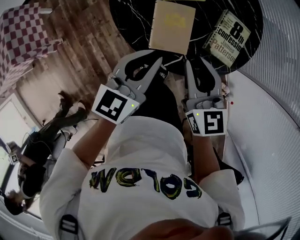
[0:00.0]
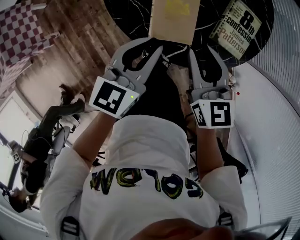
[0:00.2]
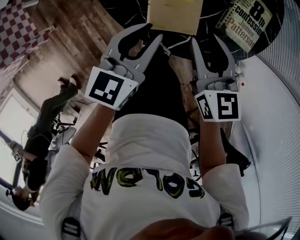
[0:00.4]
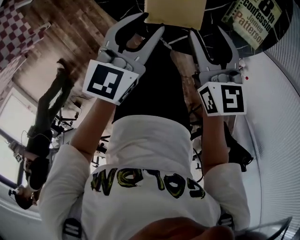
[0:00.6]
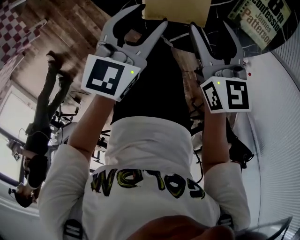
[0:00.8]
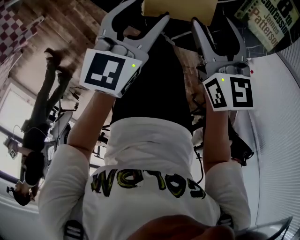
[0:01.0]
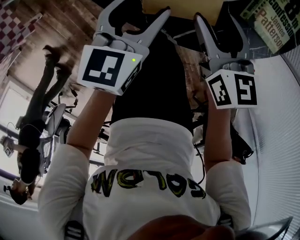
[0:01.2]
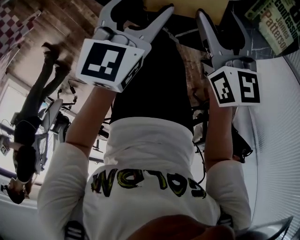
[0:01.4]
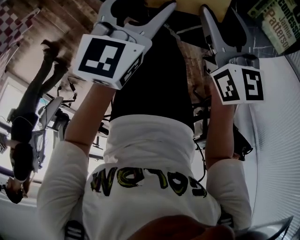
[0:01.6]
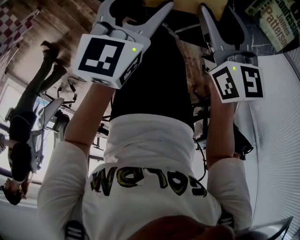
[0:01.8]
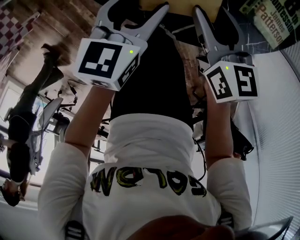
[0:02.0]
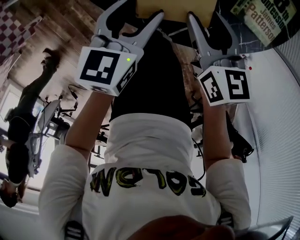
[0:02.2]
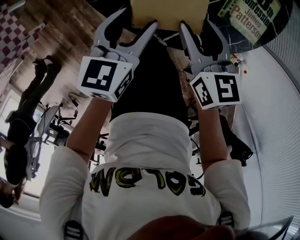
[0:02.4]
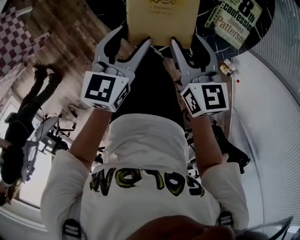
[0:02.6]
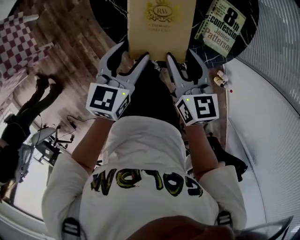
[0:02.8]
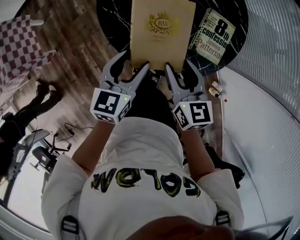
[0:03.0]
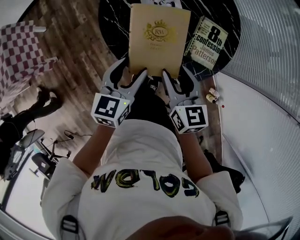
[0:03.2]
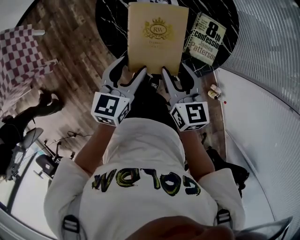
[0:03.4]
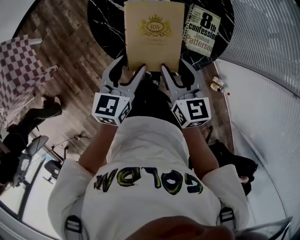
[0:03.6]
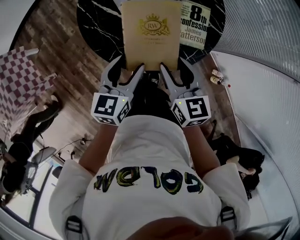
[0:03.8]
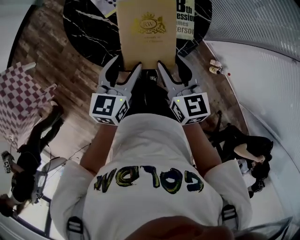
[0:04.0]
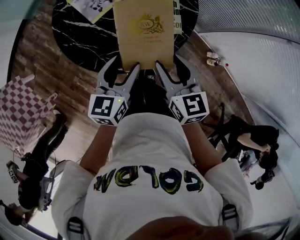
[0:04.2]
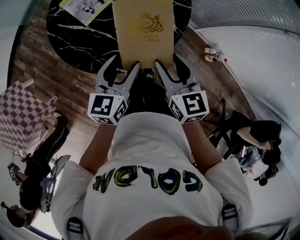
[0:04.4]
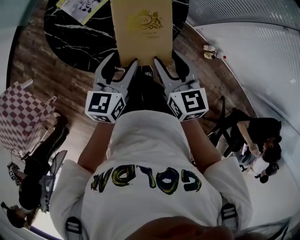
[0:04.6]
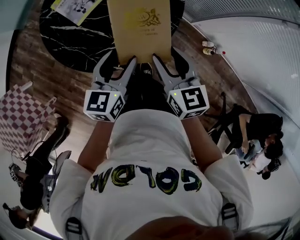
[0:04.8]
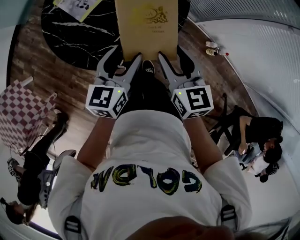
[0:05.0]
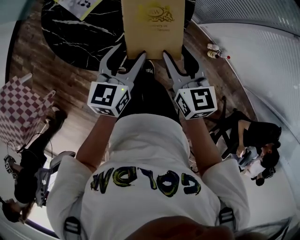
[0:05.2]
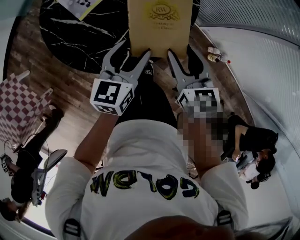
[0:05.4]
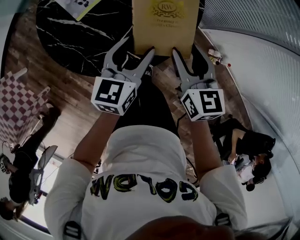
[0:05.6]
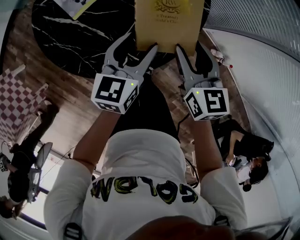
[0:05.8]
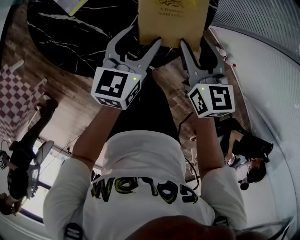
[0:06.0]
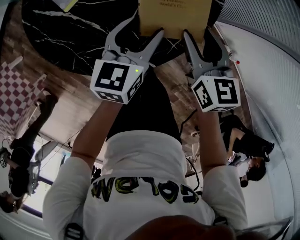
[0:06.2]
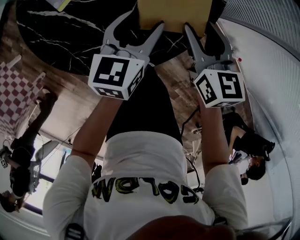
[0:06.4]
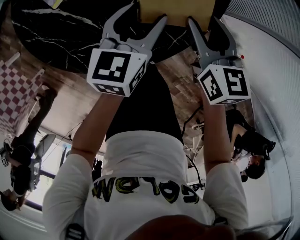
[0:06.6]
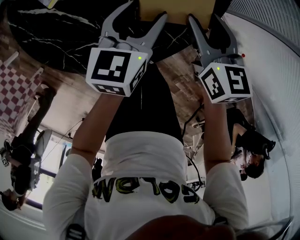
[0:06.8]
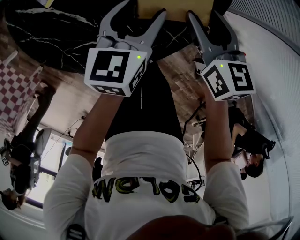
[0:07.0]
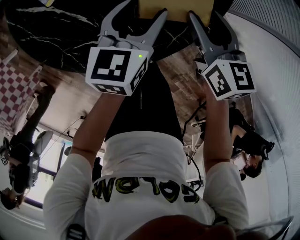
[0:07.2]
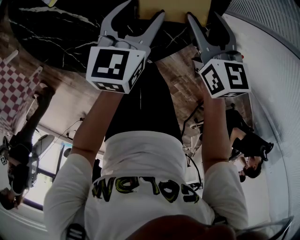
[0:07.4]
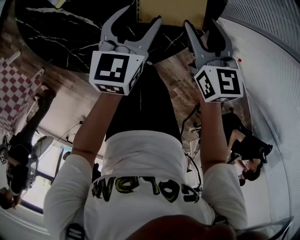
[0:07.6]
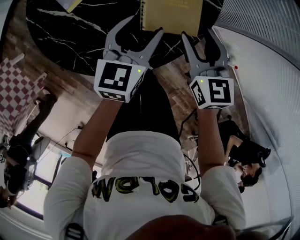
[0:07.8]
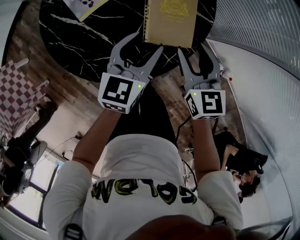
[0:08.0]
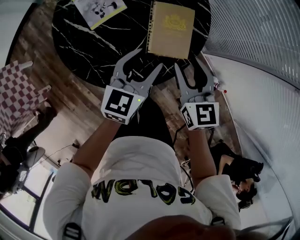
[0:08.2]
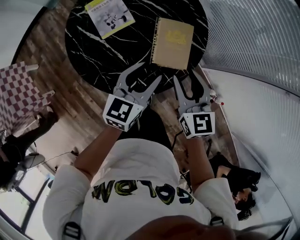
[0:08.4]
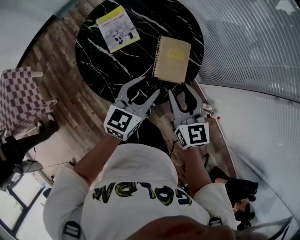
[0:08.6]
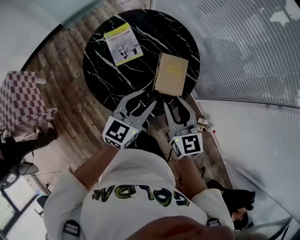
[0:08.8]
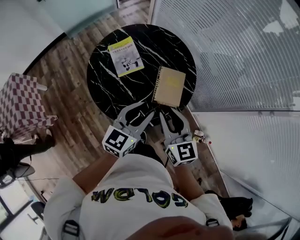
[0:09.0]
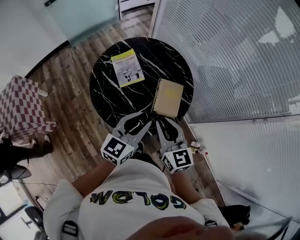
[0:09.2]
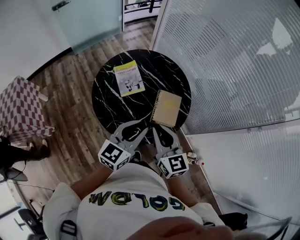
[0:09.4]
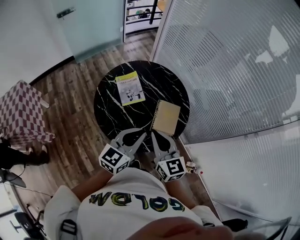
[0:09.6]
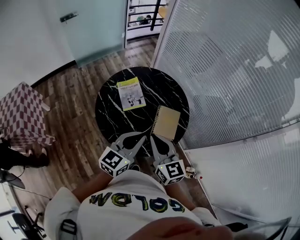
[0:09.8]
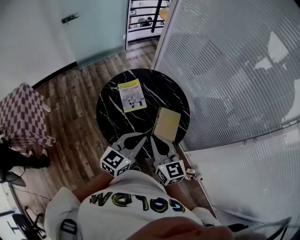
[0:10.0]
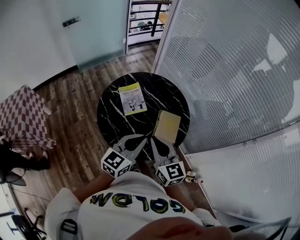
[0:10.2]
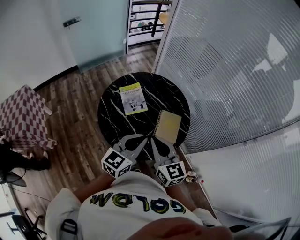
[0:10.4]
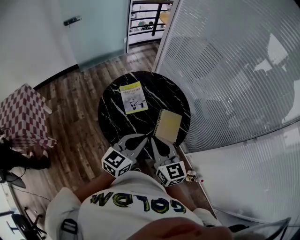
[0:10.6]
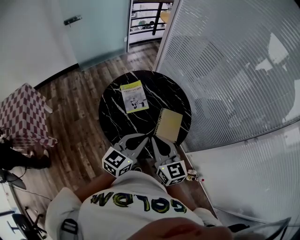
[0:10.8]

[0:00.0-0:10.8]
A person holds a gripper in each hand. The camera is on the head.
0:00.0 to 0:01.6: The grippers both shift downward by roughly 25 cm. The left gripper rotates some 20 degrees, and opens its fingers. Meanwhile the right gripper changes its angle by some 20 degrees, and opens.
0:01.6 to 0:03.0: The two grippers go approximately 20 cm upward.
0:03.0 to 0:04.6: Both grippers move to the right, some 15 cm. The left gripper turns by approximately 20 degrees, while the right gripper changes its angle by approximately 20 degrees.
0:04.6 to 0:06.2: The left gripper goes approximately 20 cm downward and forward. Meanwhile the right gripper heads forward and downward, covering some 20 cm.
0:06.2 to 0:07.8: The grippers move only a little.
0:07.8 to 0:09.2: The right gripper is displaced upward, to the left and backward by approximately 35 cm, swivels approximately 20 degrees, and closes its fingers, while the left gripper goes about 30 cm upward and backward, and closes its fingers.
0:09.2 to 0:10.8: The left gripper moves about 5 cm, and closes its fingers, while the right gripper moves to the left and upward, roughly 10 cm.

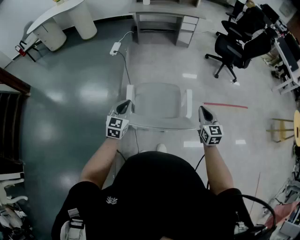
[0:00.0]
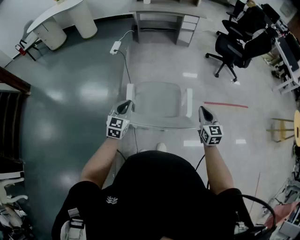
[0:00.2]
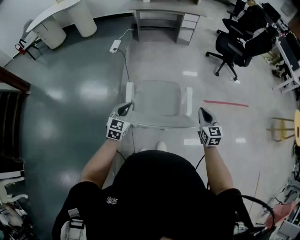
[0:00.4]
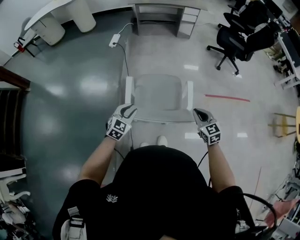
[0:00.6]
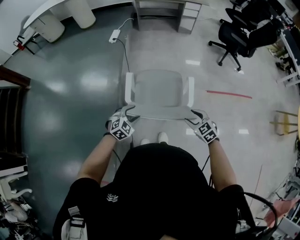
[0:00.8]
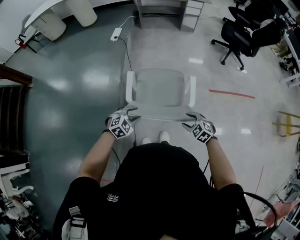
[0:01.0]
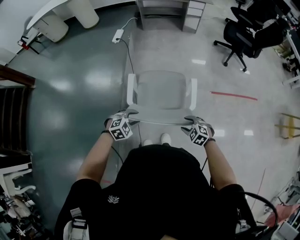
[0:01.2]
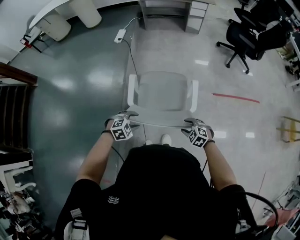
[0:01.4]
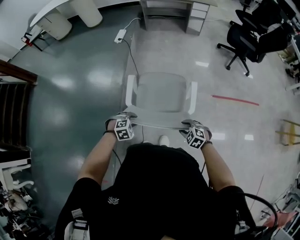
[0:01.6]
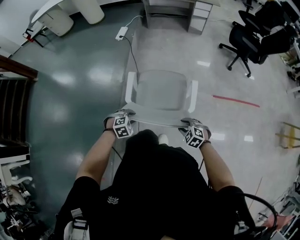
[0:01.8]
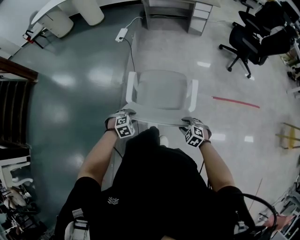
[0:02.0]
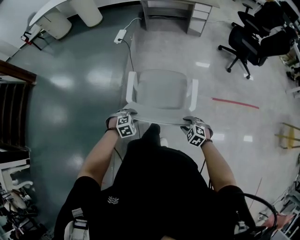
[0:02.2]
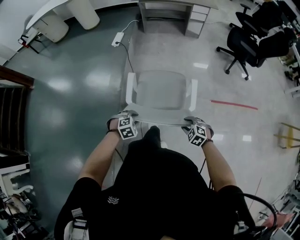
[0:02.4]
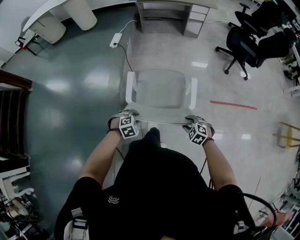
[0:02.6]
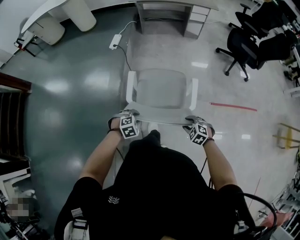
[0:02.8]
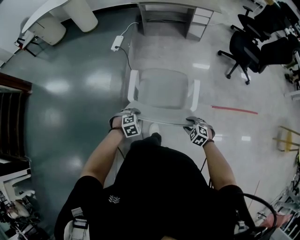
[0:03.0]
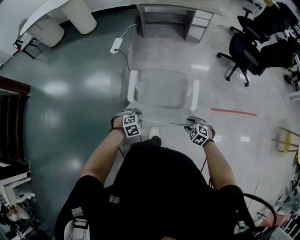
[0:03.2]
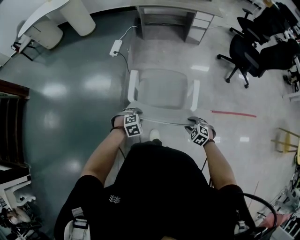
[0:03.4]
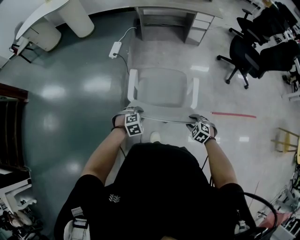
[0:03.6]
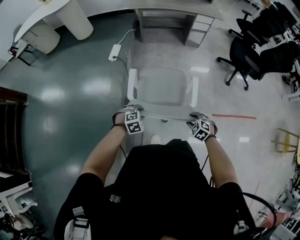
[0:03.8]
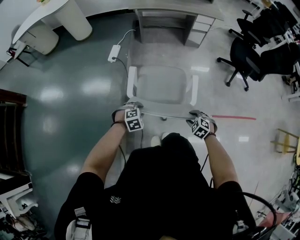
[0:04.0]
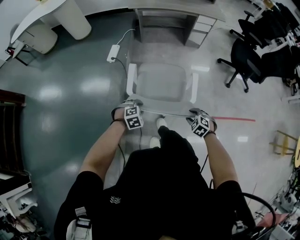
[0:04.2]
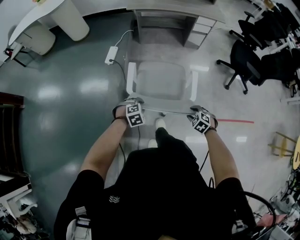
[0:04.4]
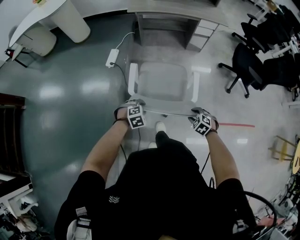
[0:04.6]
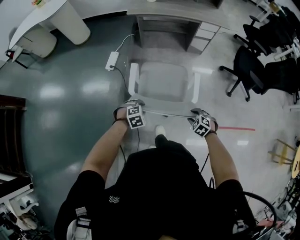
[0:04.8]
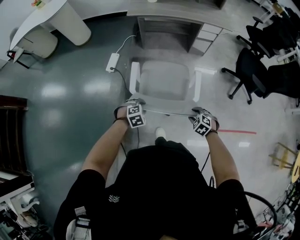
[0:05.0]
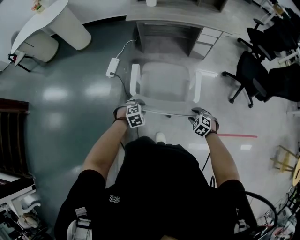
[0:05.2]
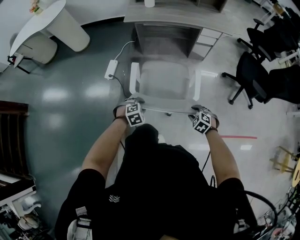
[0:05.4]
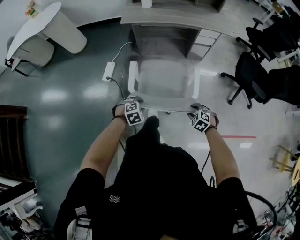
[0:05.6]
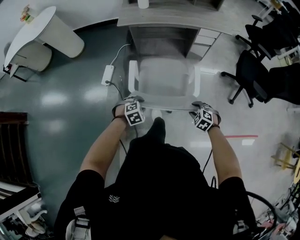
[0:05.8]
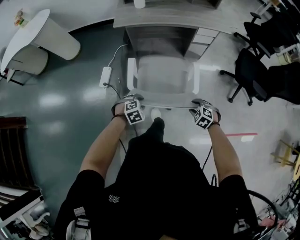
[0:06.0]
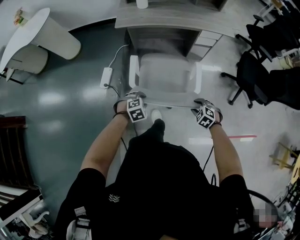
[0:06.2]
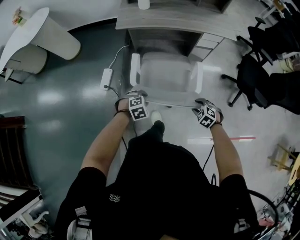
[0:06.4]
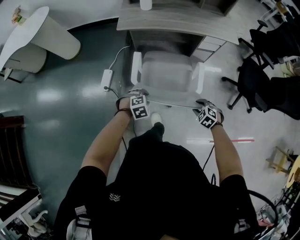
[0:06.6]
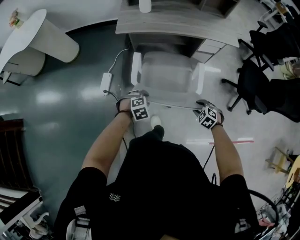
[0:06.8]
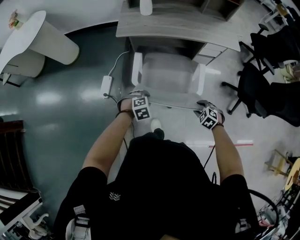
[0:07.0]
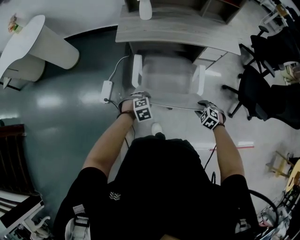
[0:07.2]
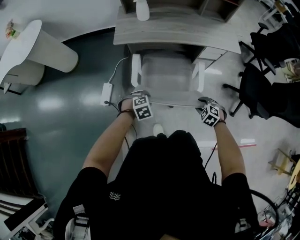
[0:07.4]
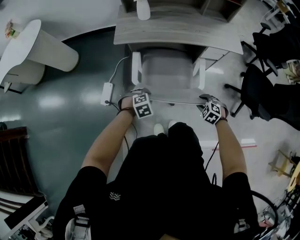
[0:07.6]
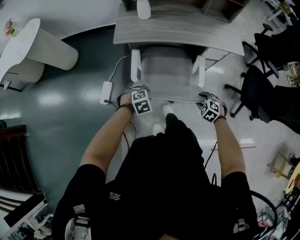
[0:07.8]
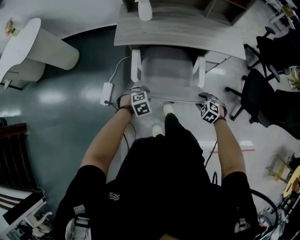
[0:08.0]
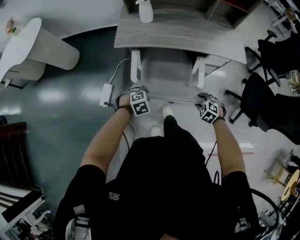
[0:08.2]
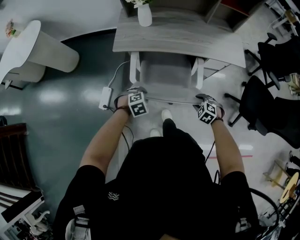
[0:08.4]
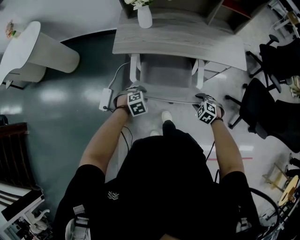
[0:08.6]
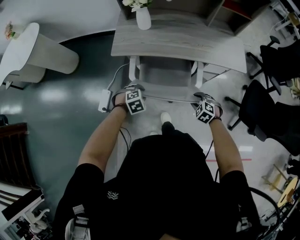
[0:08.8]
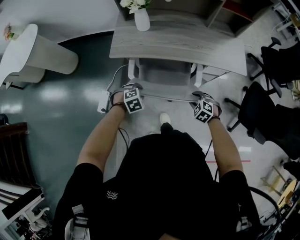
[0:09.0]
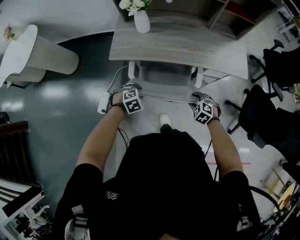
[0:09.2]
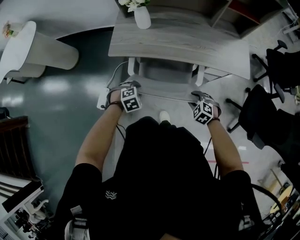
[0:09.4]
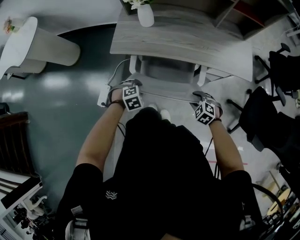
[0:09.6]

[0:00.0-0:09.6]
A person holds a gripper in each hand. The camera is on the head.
0:00.0 to 0:01.6: The left gripper moves downward, backward and to the right, about 20 cm, tilts its fingers approximately 50 degrees downward, and opens up. Meanwhile the right gripper shifts approximately 20 cm downward, tips its fingers downward by roughly 40 degrees, and opens its fingers.
0:01.6 to 0:03.2: Both grippers travel together forward, approximately 25 cm.
0:03.2 to 0:04.8: Both grippers travel together forward, approximately 35 cm.
0:04.8 to 0:06.4: Both grippers move forward, about 30 cm.
0:06.4 to 0:08.0: Both grippers travel together forward, approximately 20 cm.
0:08.0 to 0:09.6: The left gripper ends up some 15 cm from where it was. The right gripper changes place by about 15 cm.

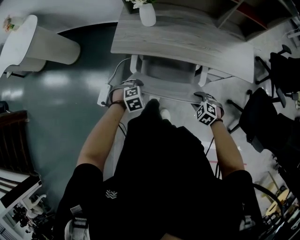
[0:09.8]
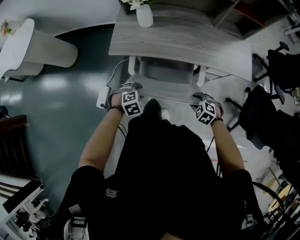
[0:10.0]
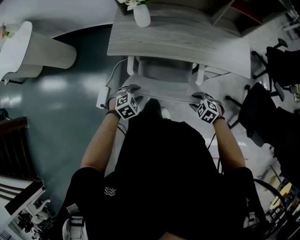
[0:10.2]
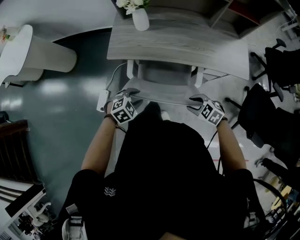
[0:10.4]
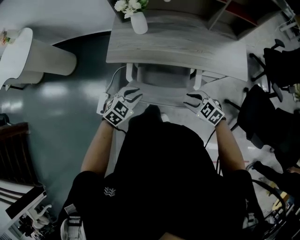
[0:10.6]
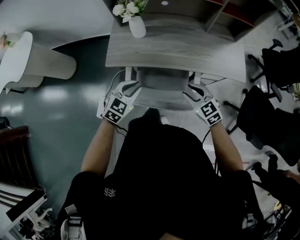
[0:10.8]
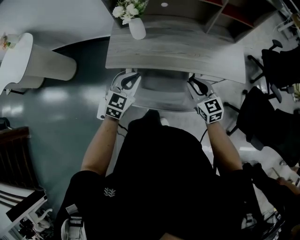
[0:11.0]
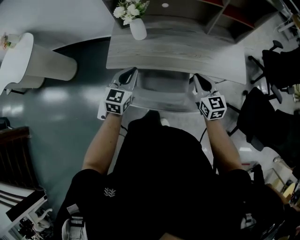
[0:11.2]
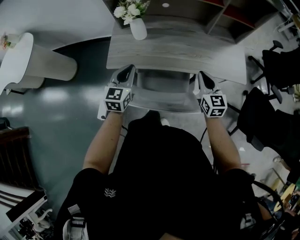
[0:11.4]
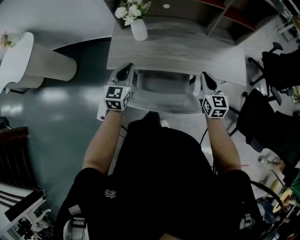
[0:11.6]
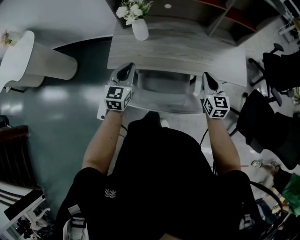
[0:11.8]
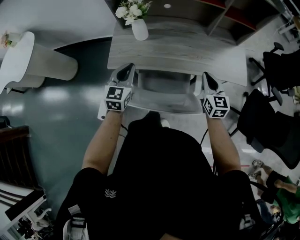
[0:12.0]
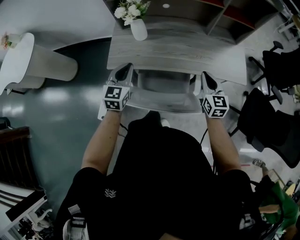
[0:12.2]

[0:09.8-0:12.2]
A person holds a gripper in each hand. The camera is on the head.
0:09.8 to 0:11.0: The grippers both shift upward by some 20 cm. The left gripper points its fingers about 50 degrees further upward, and closes up; the right gripper tilts its fingers some 40 degrees upward.
0:11.0 to 0:12.2: The left gripper changes place by approximately 5 cm, while the right gripper travels to the right by about 5 cm, and closes its fingers.
